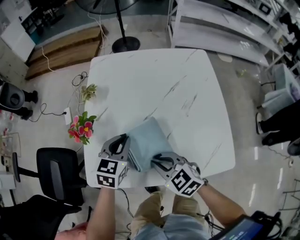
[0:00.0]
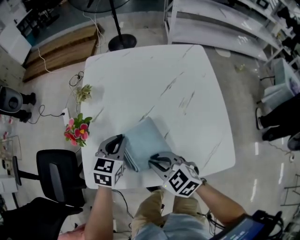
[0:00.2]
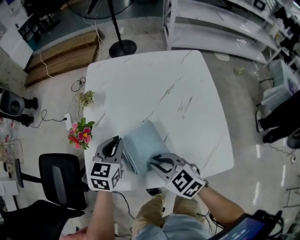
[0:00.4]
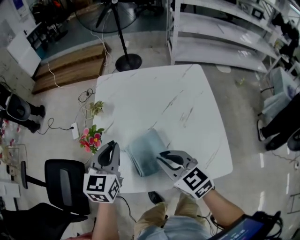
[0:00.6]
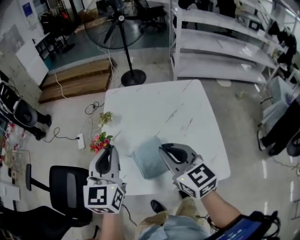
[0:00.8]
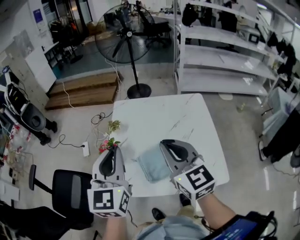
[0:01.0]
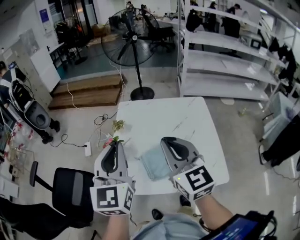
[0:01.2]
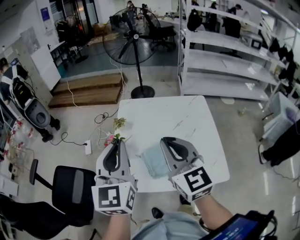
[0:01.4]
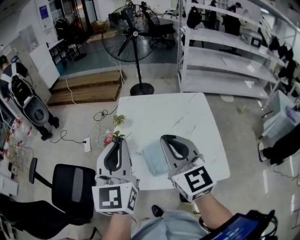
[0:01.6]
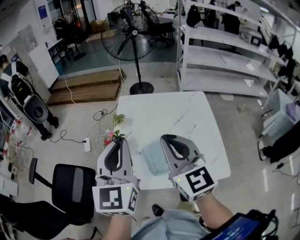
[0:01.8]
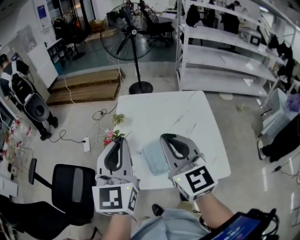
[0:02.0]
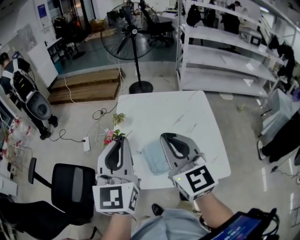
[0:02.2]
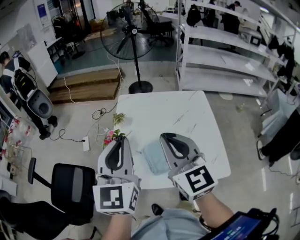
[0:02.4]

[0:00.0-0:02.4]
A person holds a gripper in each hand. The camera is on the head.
0:00.0 to 0:01.2: The grippers both shift upward by about 35 cm. The right gripper points its fingers some 40 degrees further upward, while the left gripper angles its fingers upward, by roughly 40 degrees.
0:01.2 to 0:02.4: The grippers stay close to where they were, moving slightly.

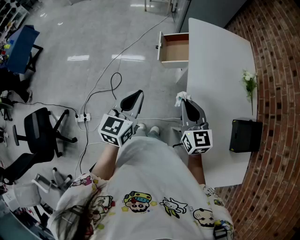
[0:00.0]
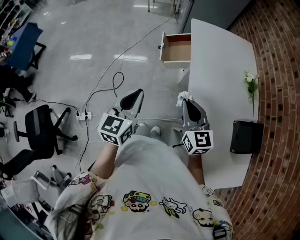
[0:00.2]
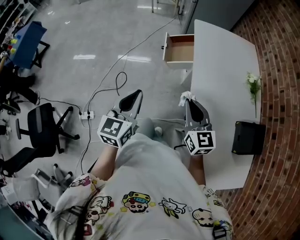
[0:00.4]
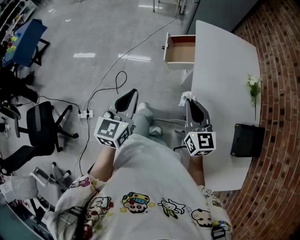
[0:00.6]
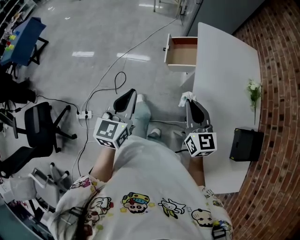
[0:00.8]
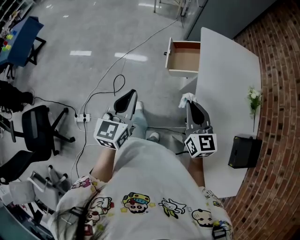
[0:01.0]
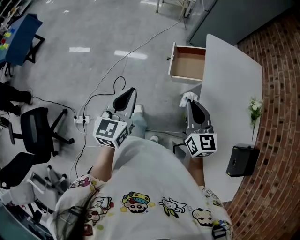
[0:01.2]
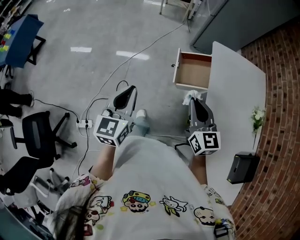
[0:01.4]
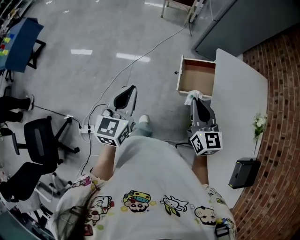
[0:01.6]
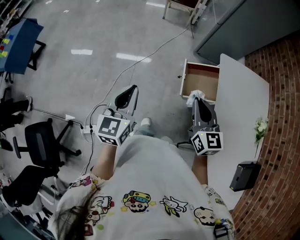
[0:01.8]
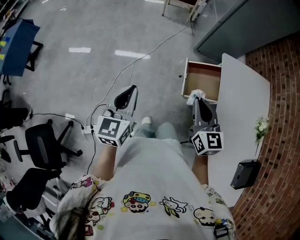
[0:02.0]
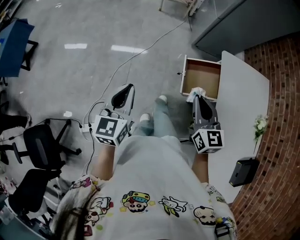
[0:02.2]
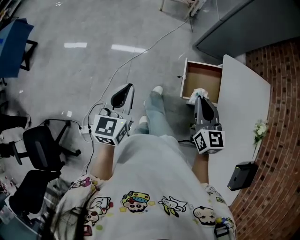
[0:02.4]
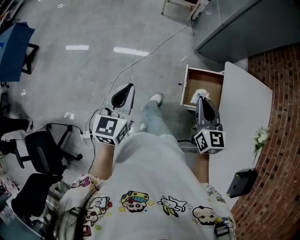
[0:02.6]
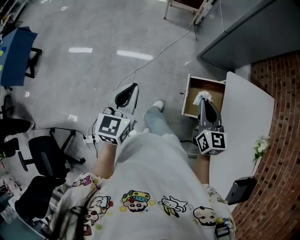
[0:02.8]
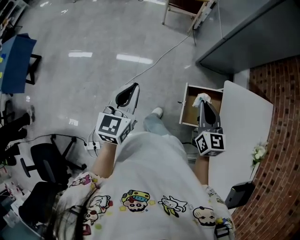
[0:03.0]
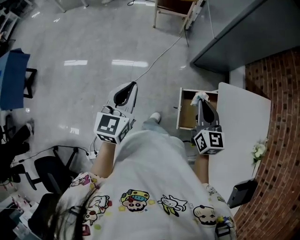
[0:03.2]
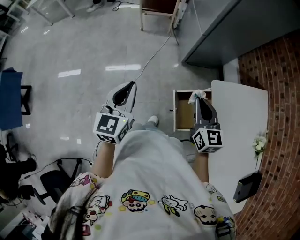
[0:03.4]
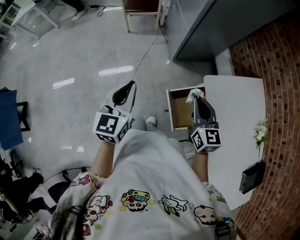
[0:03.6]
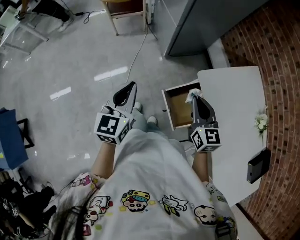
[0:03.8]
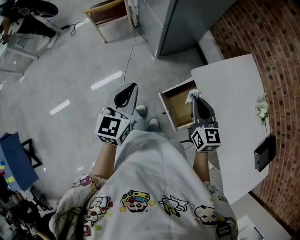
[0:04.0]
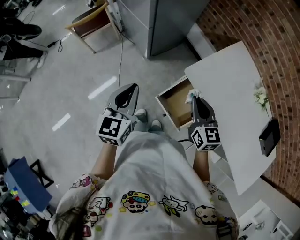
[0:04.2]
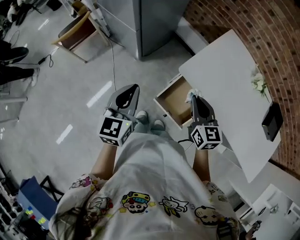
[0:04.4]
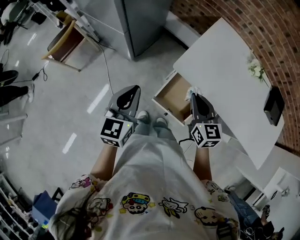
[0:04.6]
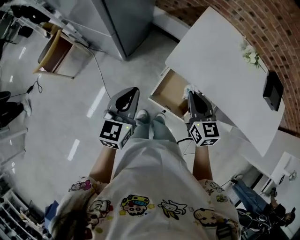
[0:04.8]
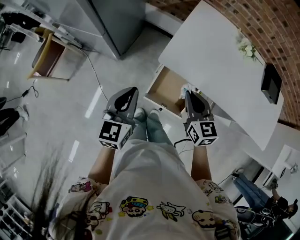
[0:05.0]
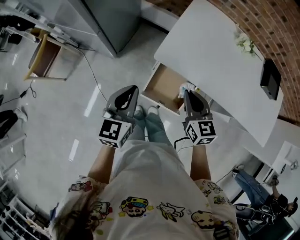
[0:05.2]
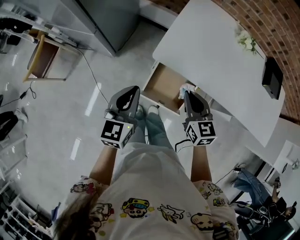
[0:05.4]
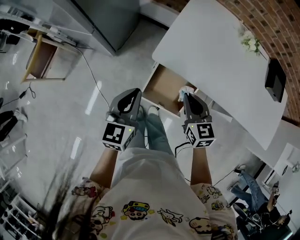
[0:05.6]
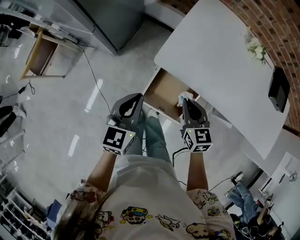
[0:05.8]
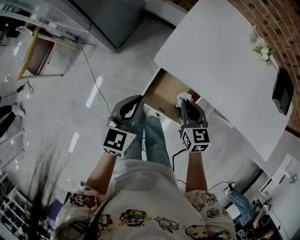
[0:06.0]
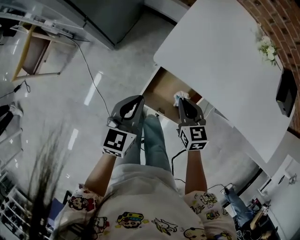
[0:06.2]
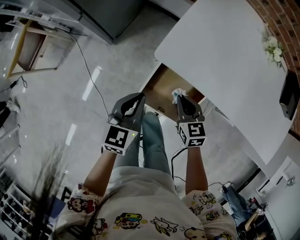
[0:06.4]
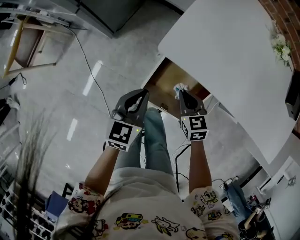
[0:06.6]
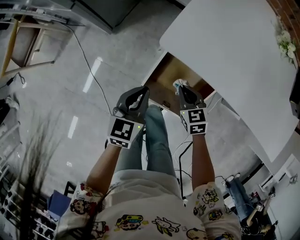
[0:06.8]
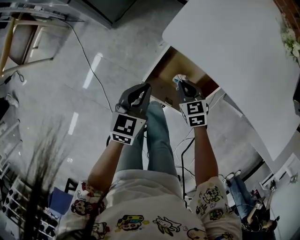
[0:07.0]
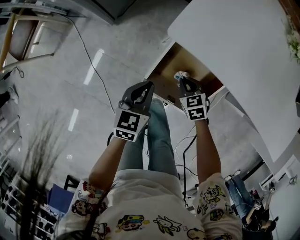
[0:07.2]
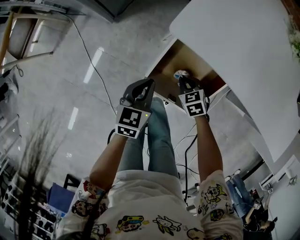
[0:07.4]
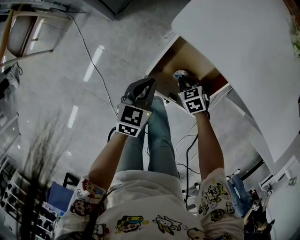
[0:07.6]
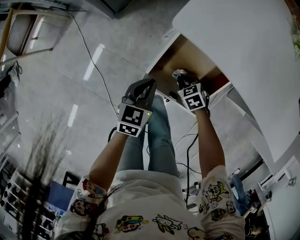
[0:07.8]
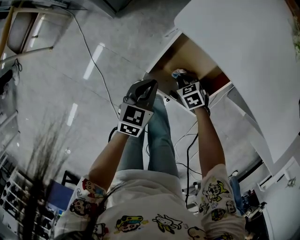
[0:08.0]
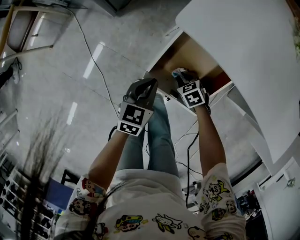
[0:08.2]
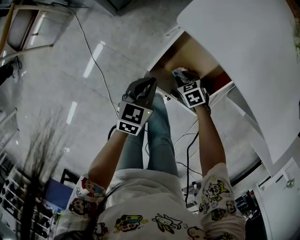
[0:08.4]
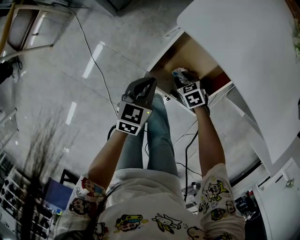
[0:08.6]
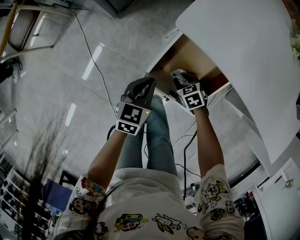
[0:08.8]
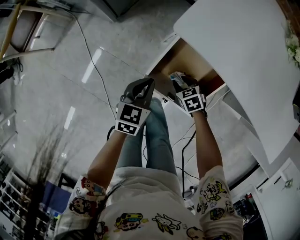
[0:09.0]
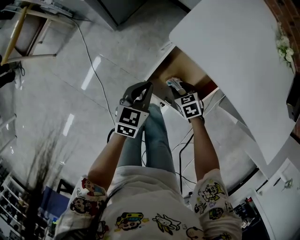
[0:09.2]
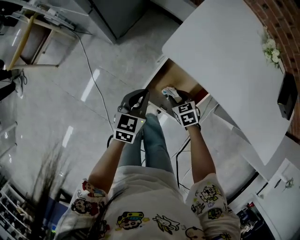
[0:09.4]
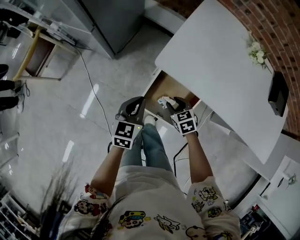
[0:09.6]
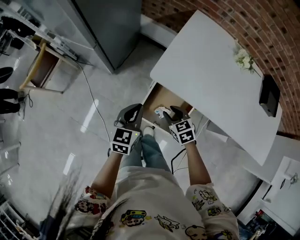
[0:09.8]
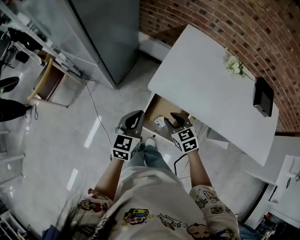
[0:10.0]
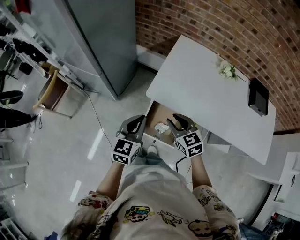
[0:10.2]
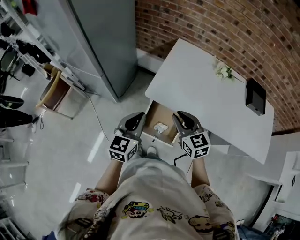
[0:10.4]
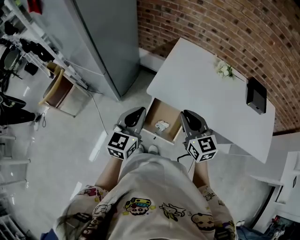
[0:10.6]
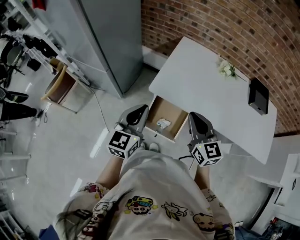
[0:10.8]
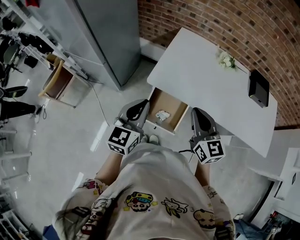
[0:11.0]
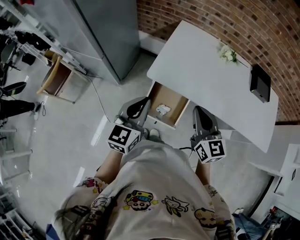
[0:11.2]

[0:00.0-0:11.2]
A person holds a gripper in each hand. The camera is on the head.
0:00.0 to 0:01.6: Both grippers move forward and to the left, some 30 cm.
0:01.6 to 0:03.2: Both grippers move forward, approximately 30 cm.
0:03.2 to 0:04.8: The right gripper shifts by about 15 cm, and rotates approximately 60 degrees. The left gripper shifts by about 30 cm, and rotates about 70 degrees.
0:04.8 to 0:06.4: The right gripper heads downward, covering roughly 25 cm; the left gripper travels downward and to the right by some 20 cm.
0:06.4 to 0:08.0: The two grippers go approximately 20 cm downward. The right gripper rotates about 40 degrees.
0:08.0 to 0:09.6: The two grippers go roughly 15 cm upward. The right gripper opens up.
0:09.6 to 0:11.2: The grippers both shift upward by approximately 35 cm. The right gripper angles its fingers upward, by approximately 50 degrees, and closes up. The left gripper changes its angle by about 20 degrees.

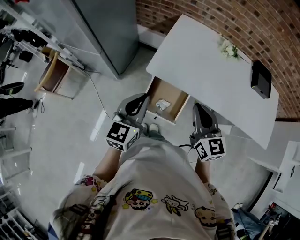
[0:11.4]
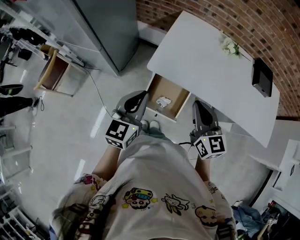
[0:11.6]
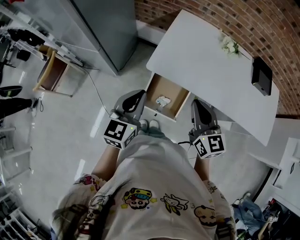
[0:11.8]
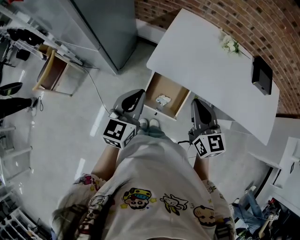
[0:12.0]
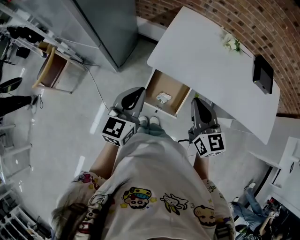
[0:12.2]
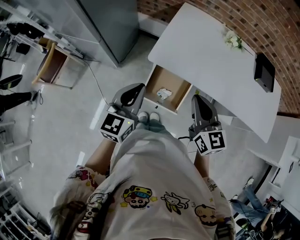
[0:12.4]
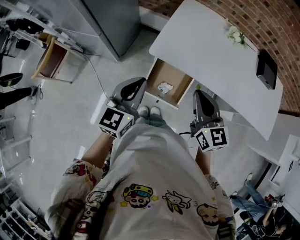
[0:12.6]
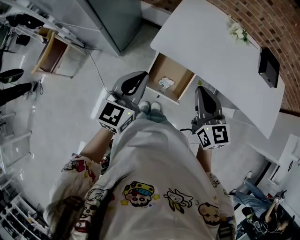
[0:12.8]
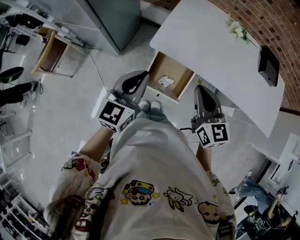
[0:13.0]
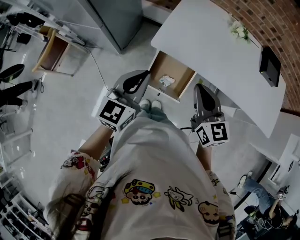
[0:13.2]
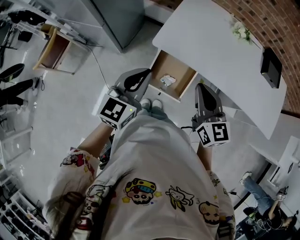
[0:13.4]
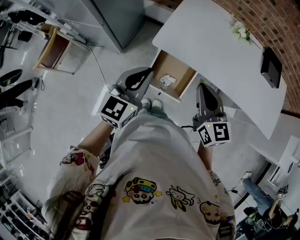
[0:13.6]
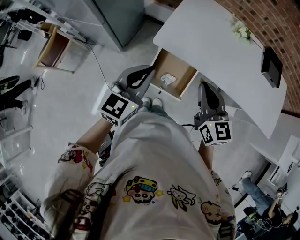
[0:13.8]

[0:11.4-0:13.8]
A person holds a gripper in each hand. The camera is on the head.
0:11.4 to 0:13.8: The grippers move only a little.

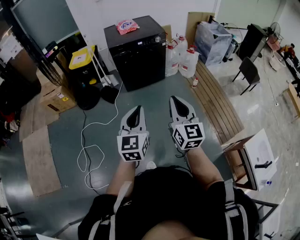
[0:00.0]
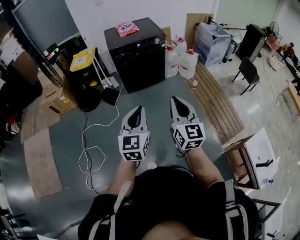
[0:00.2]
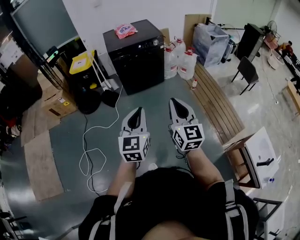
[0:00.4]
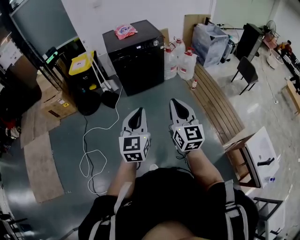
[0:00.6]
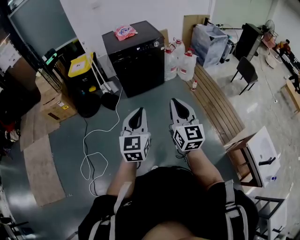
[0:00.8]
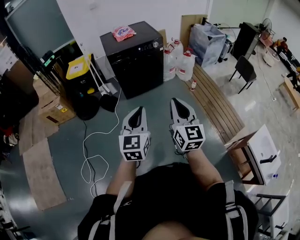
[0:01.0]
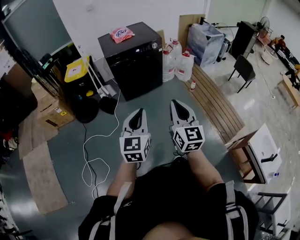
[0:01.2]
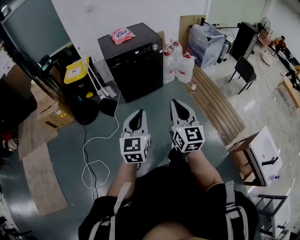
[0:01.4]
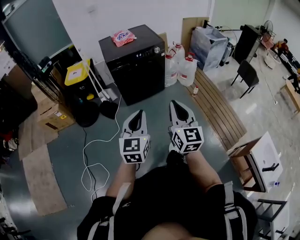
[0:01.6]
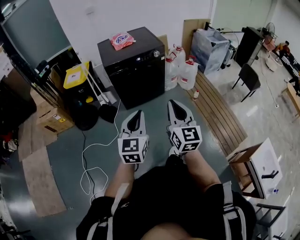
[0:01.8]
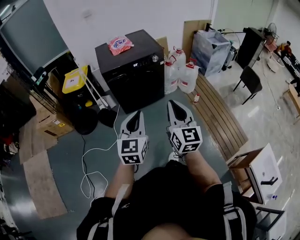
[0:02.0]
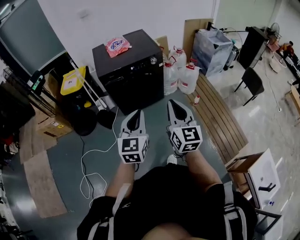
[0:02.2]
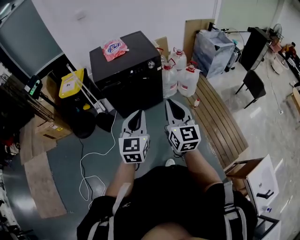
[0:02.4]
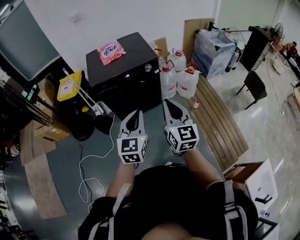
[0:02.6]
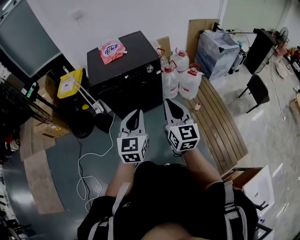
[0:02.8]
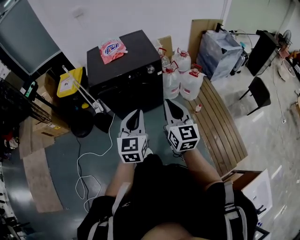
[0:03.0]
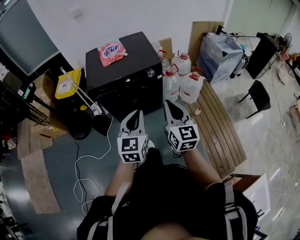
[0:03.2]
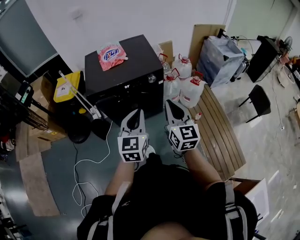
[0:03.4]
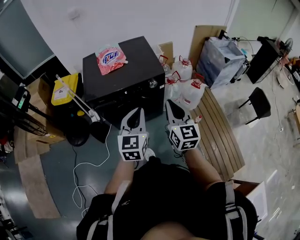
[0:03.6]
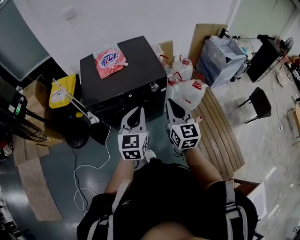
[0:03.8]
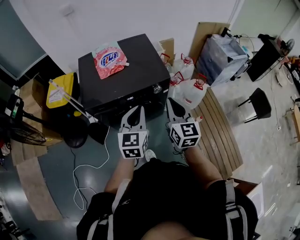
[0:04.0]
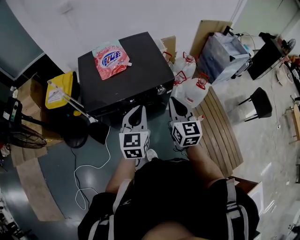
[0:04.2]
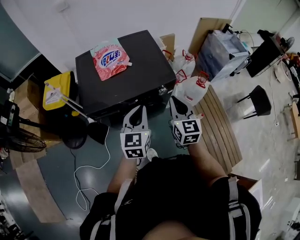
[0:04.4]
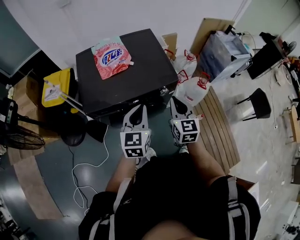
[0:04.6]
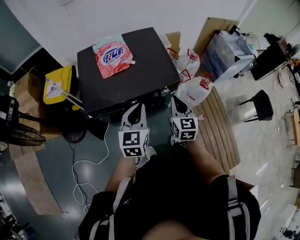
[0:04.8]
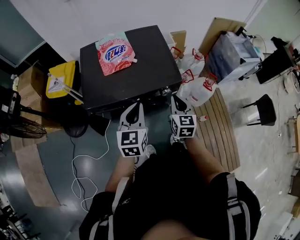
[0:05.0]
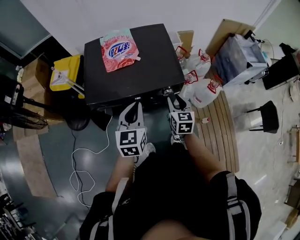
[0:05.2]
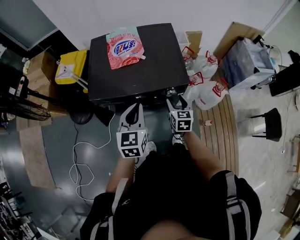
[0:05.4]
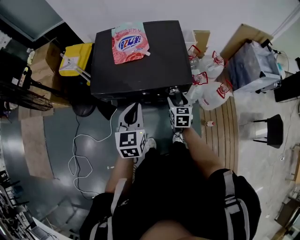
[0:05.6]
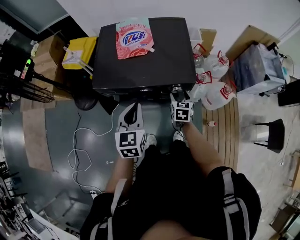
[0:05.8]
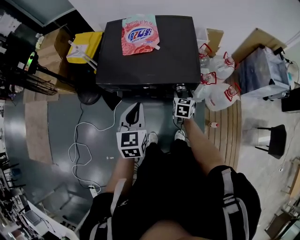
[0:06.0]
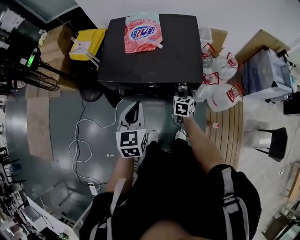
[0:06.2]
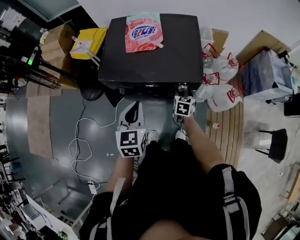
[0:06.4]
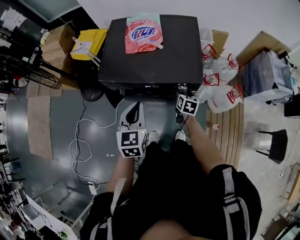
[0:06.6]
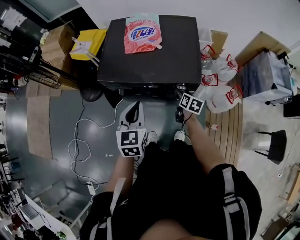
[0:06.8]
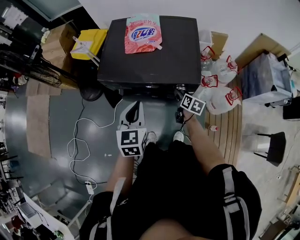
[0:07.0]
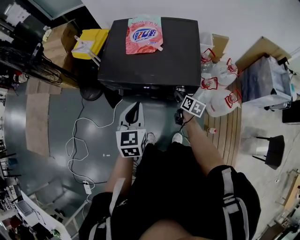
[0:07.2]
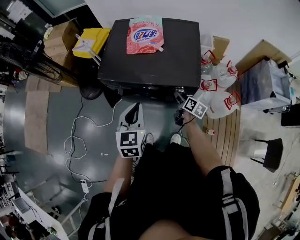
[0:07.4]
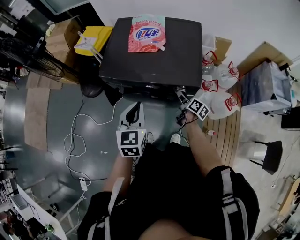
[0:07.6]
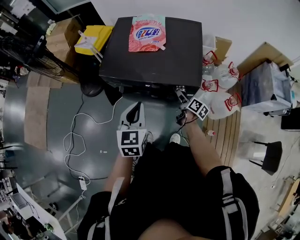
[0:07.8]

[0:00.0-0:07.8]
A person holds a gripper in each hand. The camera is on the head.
0:00.0 to 0:01.6: The two grippers go about 10 cm forward.
0:01.6 to 0:03.2: The two grippers travel together, forward, roughly 40 cm.
0:03.2 to 0:04.6: Both grippers move forward, roughly 30 cm.
0:04.6 to 0:06.2: The right gripper moves downward and forward, about 25 cm, rotates about 30 degrees, and opens its fingers, while the left gripper turns by roughly 30 degrees.
0:06.2 to 0:07.8: The right gripper rolls clockwise, seen from behind, by some 50 degrees.
